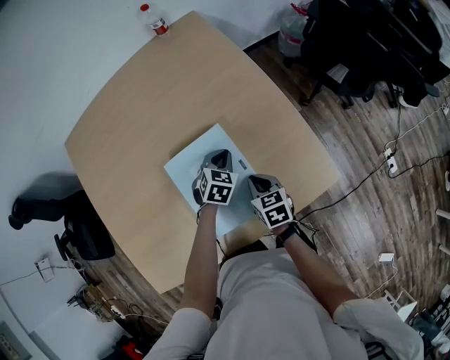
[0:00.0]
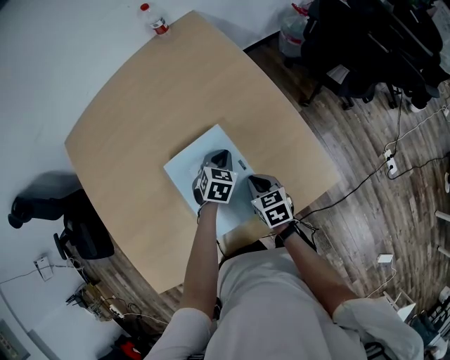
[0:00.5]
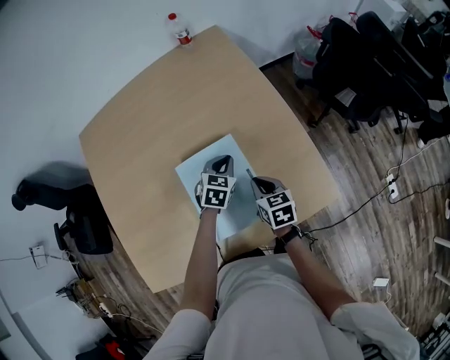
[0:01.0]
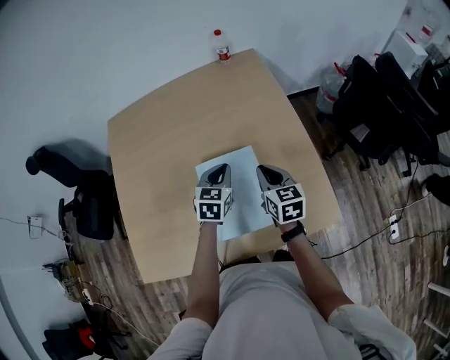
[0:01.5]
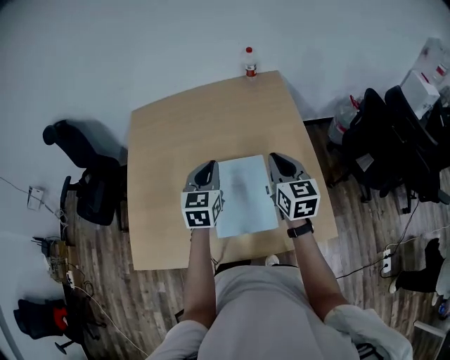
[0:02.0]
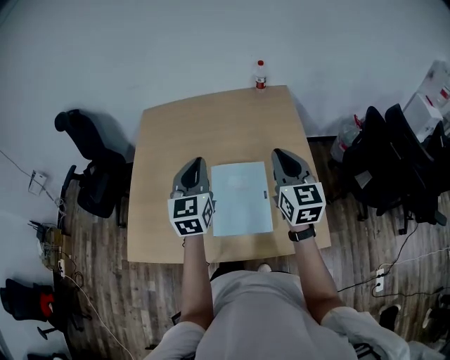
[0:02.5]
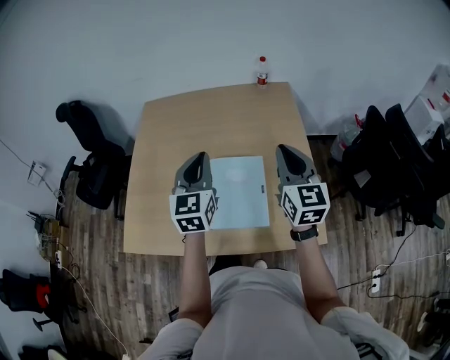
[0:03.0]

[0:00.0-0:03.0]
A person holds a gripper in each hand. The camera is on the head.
0:00.0 to 0:01.5: The left gripper heads upward and to the left, covering some 15 cm, and swivels approximately 30 degrees. Meanwhile the right gripper heads upward and forward, covering roughly 15 cm, and rotates roughly 20 degrees.
0:01.5 to 0:03.0: The right gripper shifts about 20 cm upward, and swivels roughly 30 degrees, while the left gripper heads upward and to the left, covering approximately 25 cm, and changes its angle by some 40 degrees.

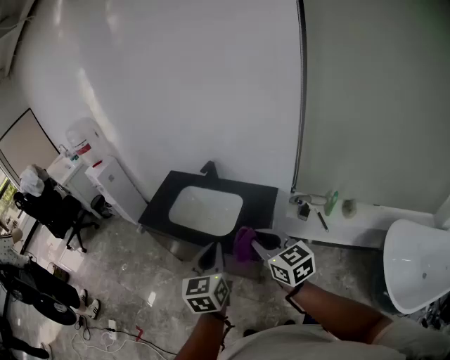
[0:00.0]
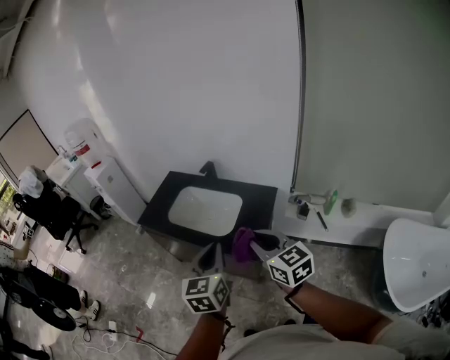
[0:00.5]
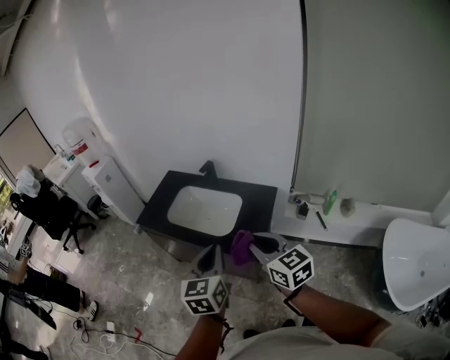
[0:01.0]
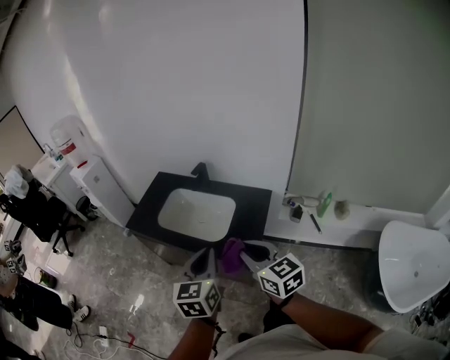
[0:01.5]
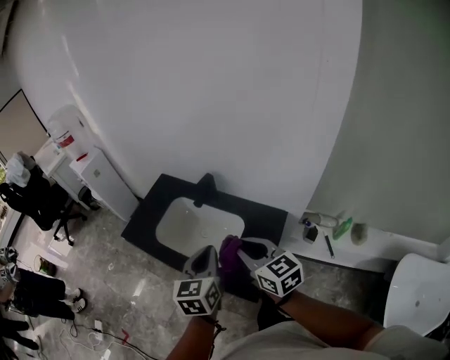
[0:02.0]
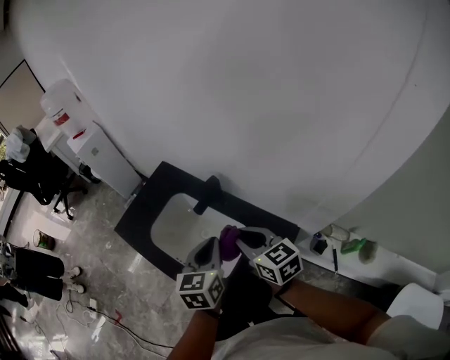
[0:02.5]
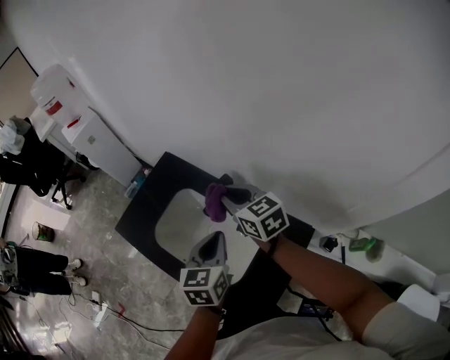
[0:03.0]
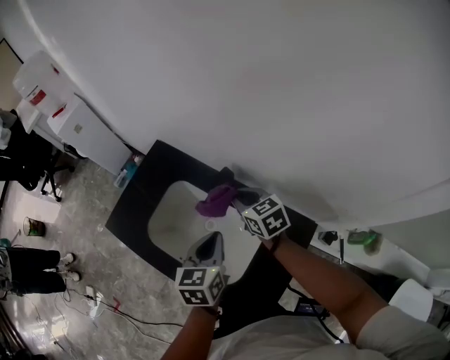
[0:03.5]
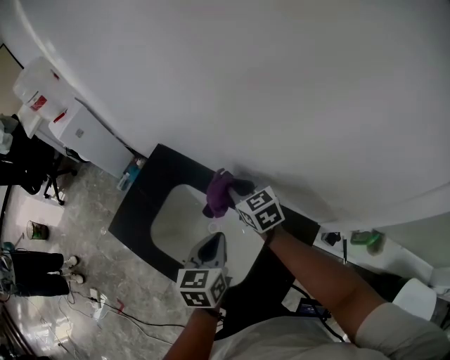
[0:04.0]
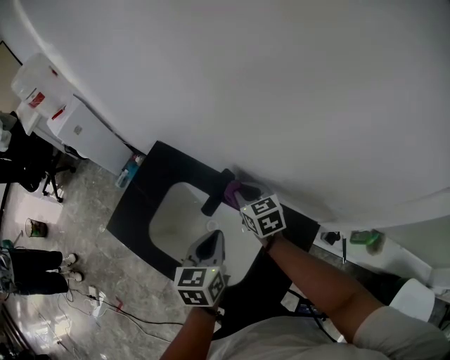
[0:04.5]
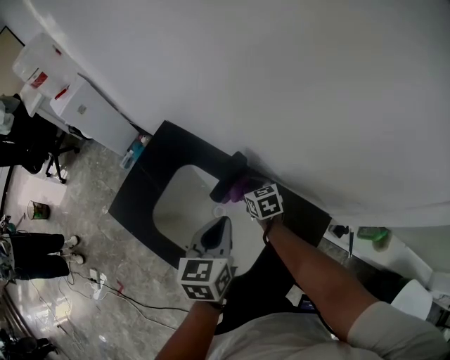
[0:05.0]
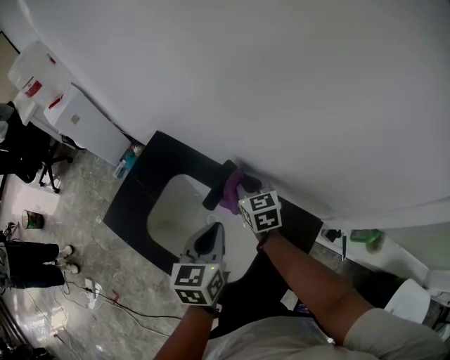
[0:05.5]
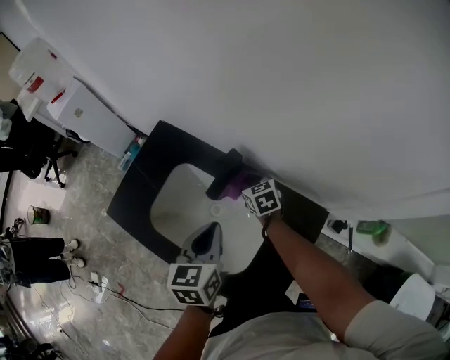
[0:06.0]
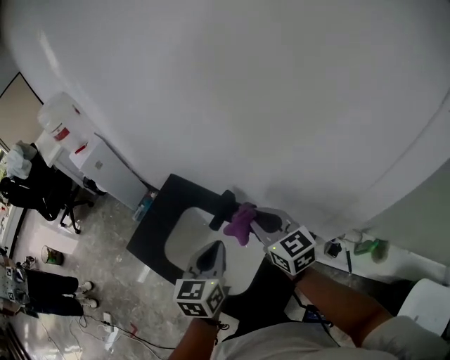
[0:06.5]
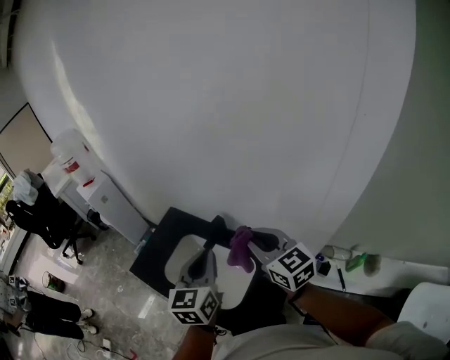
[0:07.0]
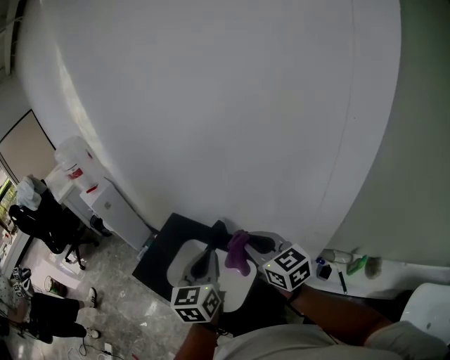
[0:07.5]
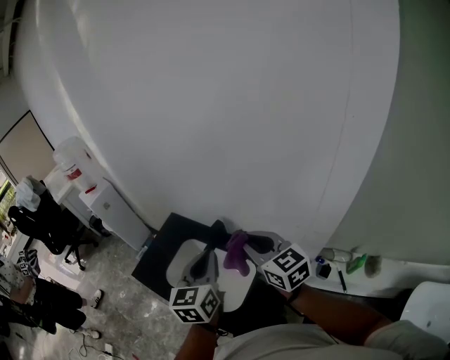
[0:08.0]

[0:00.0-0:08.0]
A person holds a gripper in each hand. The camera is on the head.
0:00.0 to 0:02.0: The two grippers go about 25 cm forward.
0:02.0 to 0:04.0: The left gripper travels forward and downward by some 30 cm; the right gripper is displaced forward and downward by about 50 cm.
0:04.0 to 0:06.0: The right gripper swings up and down, roughly 15 cm each way, with 2 reversals.
0:06.0 to 0:08.0: The left gripper moves upward and backward, roughly 25 cm, and swivels approximately 20 degrees, while the right gripper travels upward and backward by approximately 50 cm, and angles its fingers upward, by approximately 30 degrees.

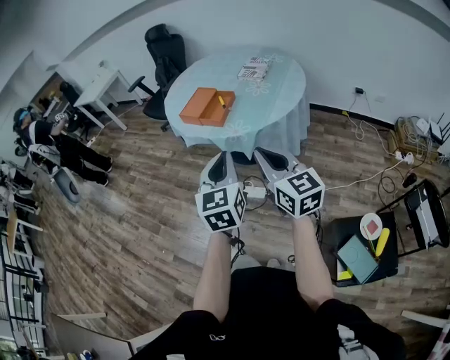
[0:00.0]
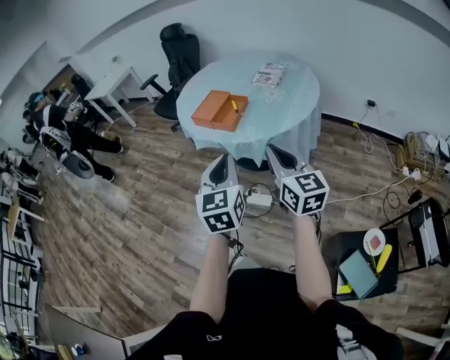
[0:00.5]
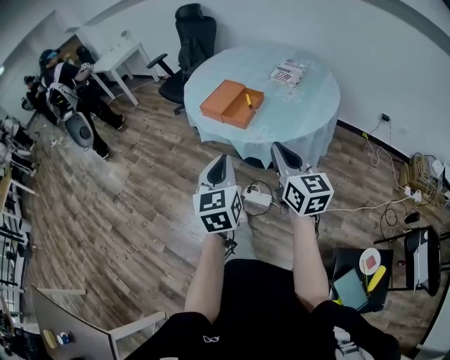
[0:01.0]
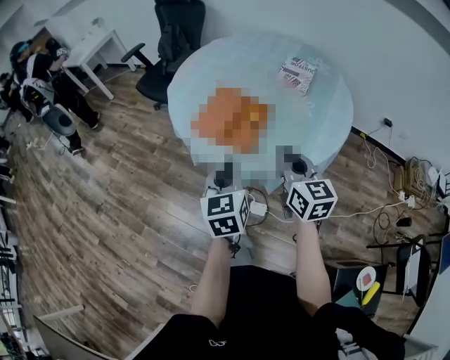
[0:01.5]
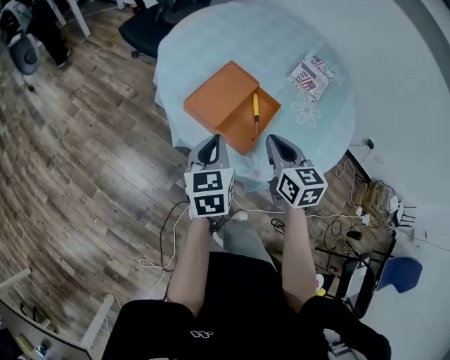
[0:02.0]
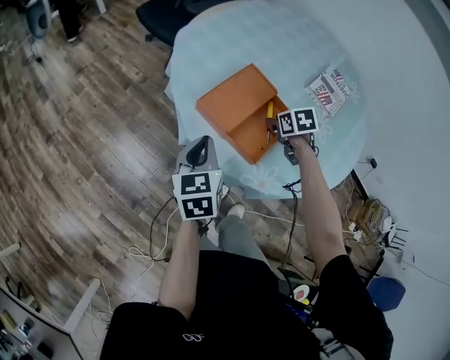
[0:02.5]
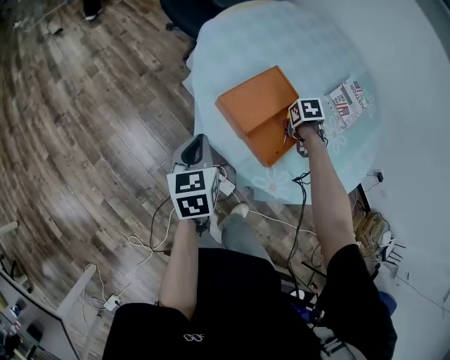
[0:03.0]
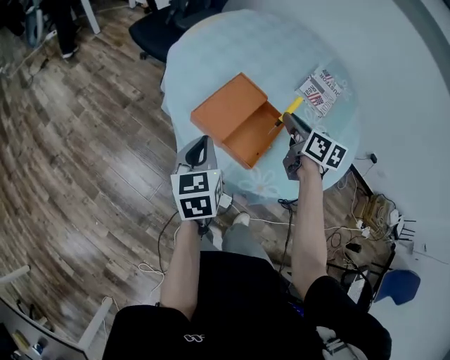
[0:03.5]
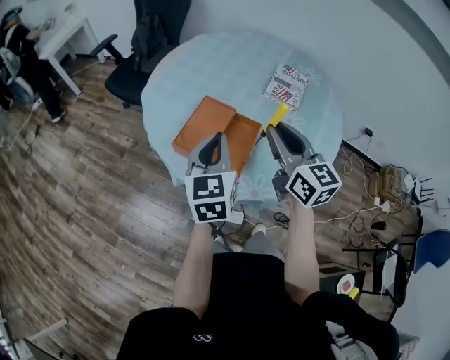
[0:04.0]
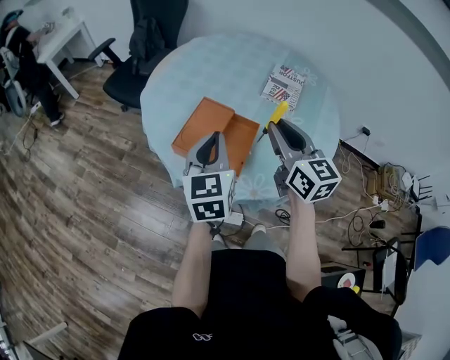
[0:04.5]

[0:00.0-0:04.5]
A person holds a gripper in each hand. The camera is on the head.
0:00.0 to 0:02.0: The pair of grippers is taken forward, about 50 cm. The right gripper changes its angle by about 30 degrees; the left gripper moves downward, about 20 cm, and swivels roughly 30 degrees.
0:02.0 to 0:04.5: The two grippers go about 15 cm upward. The right gripper turns by approximately 20 degrees.

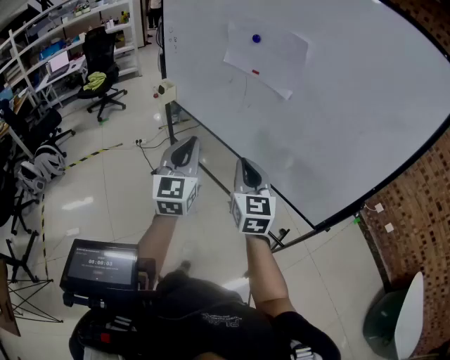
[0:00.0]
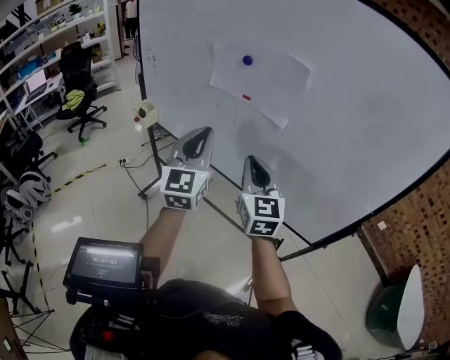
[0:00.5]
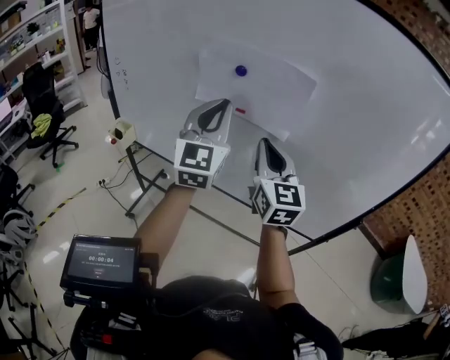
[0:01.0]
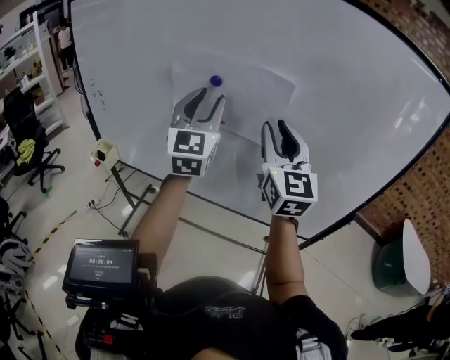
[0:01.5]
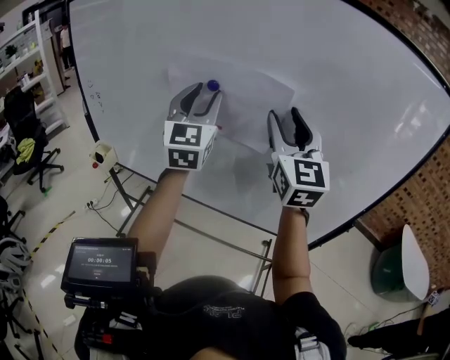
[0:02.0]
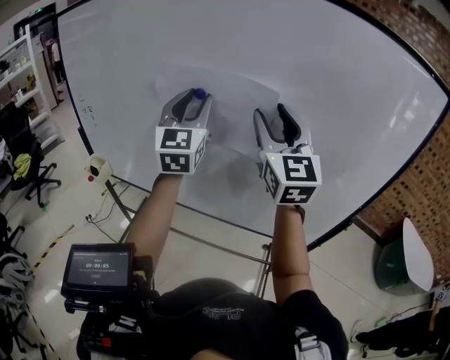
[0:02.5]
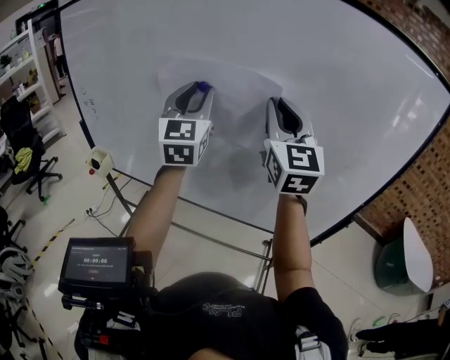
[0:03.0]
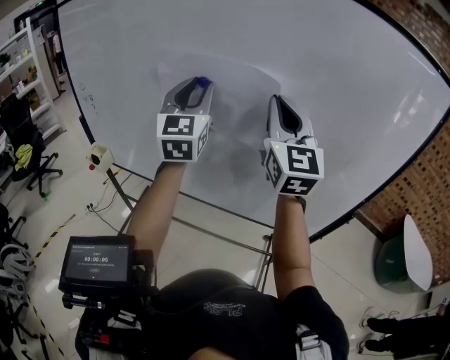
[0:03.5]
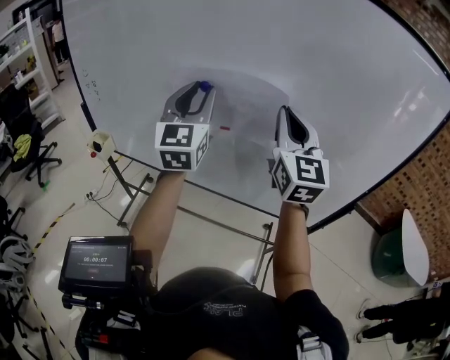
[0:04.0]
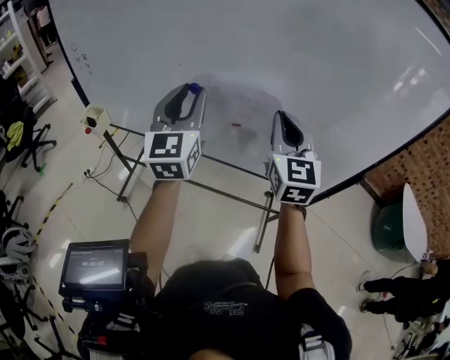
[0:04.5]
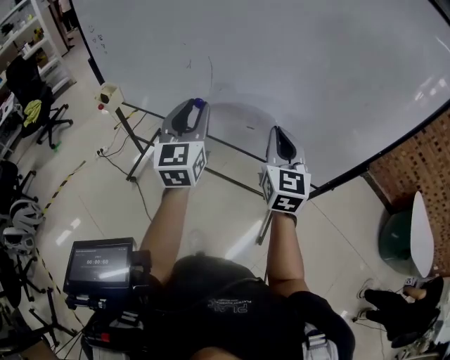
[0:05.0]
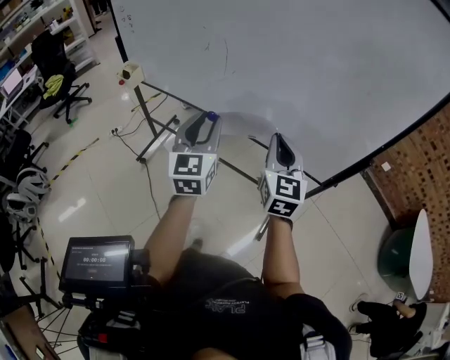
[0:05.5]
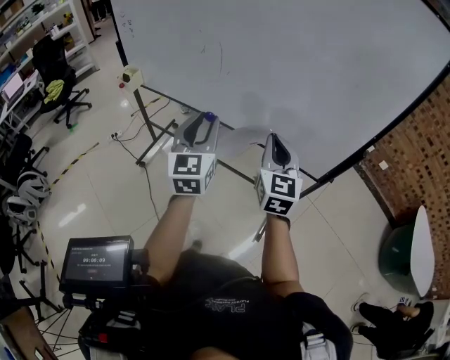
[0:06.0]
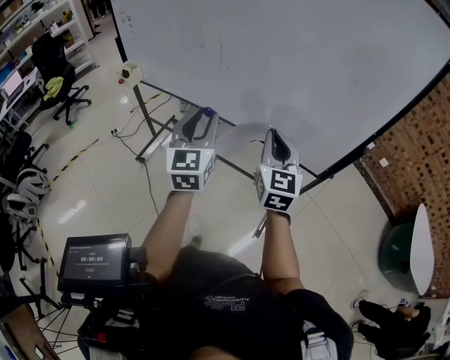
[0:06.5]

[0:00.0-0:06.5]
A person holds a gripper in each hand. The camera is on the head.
0:00.0 to 0:02.0: The left gripper is displaced forward and upward by approximately 35 cm, rotates some 30 degrees, and opens, while the right gripper travels upward and forward by roughly 30 cm, swivels about 30 degrees, and opens its fingers.
0:02.0 to 0:04.5: The left gripper travels downward and backward by approximately 15 cm. The right gripper moves downward, approximately 15 cm, and closes its fingers.
0:04.5 to 0:06.5: The grippers both shift backward and downward by about 20 cm.

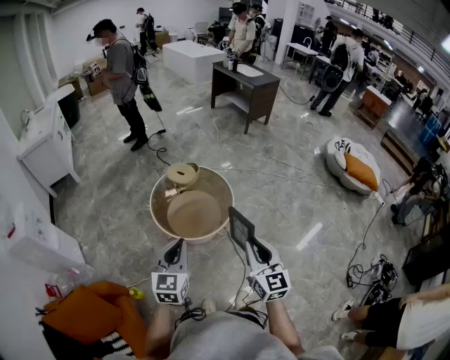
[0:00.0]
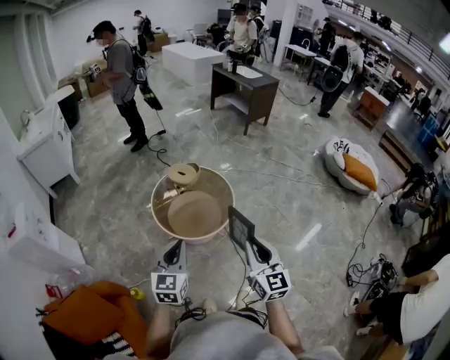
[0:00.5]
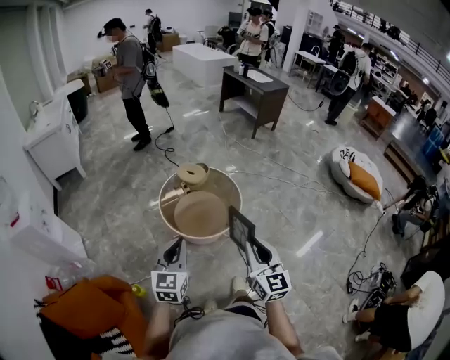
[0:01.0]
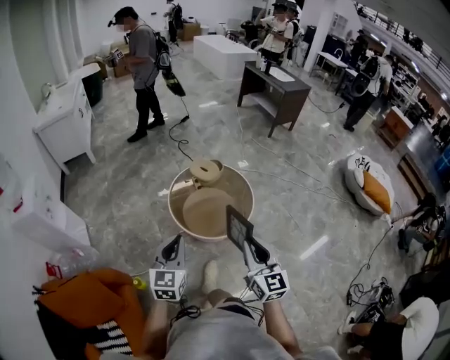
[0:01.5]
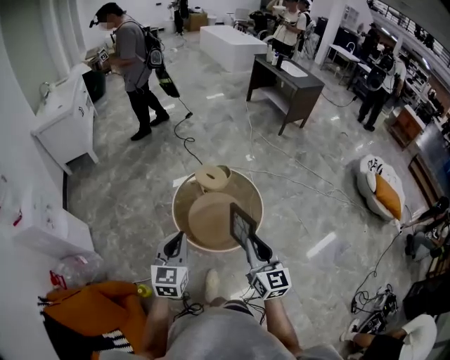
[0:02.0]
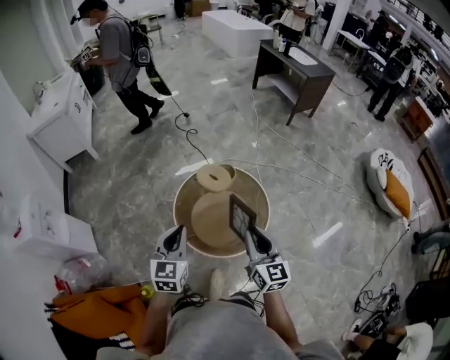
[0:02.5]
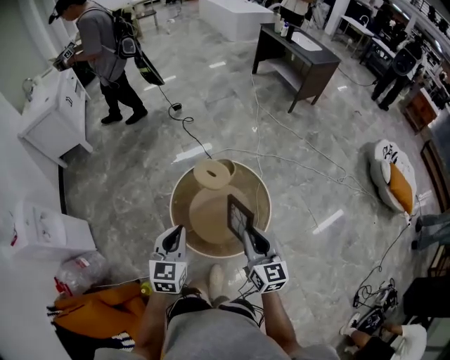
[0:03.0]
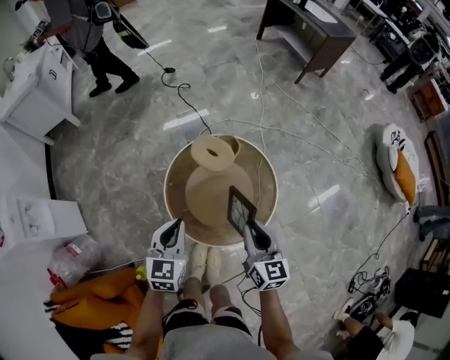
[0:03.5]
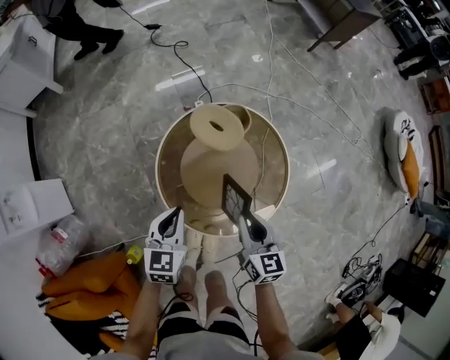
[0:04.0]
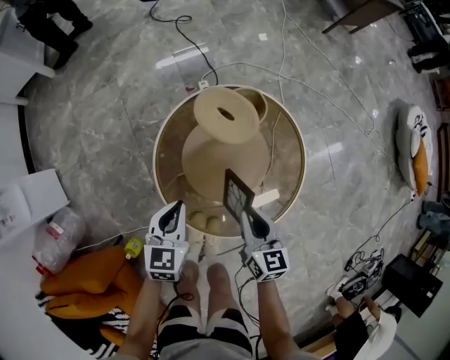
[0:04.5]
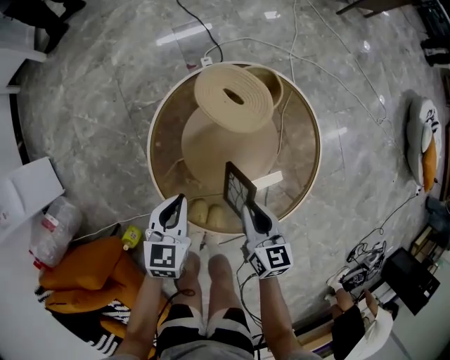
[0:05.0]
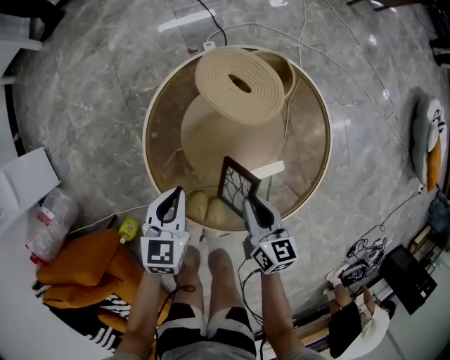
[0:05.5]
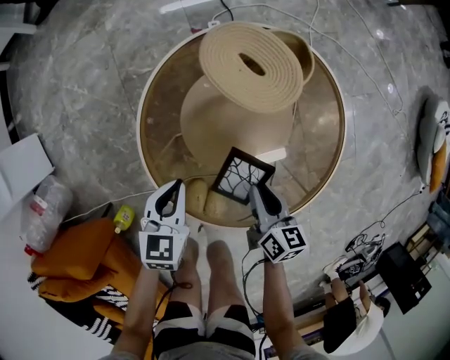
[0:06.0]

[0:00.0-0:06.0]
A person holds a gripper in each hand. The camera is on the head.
0:00.0 to 0:02.0: The grippers both shift forward and to the left by roughly 20 cm.
0:02.0 to 0:04.0: Both grippers travel together downward and forward, some 40 cm. The right gripper changes its angle by some 20 degrees. Meanwhile the left gripper swivels approximately 20 degrees.
0:04.0 to 0:06.0: Both grippers move downward, some 30 cm. The right gripper changes its angle by about 20 degrees.
